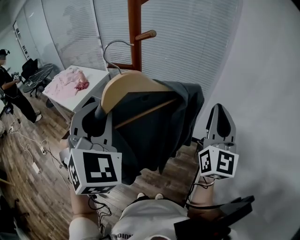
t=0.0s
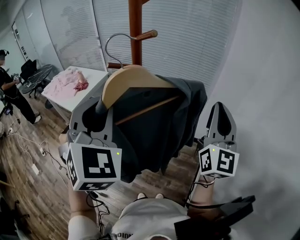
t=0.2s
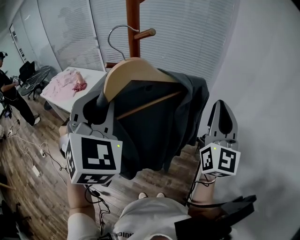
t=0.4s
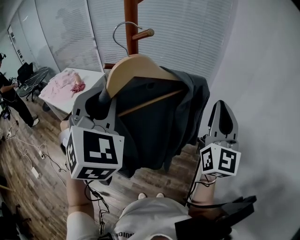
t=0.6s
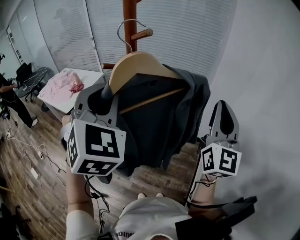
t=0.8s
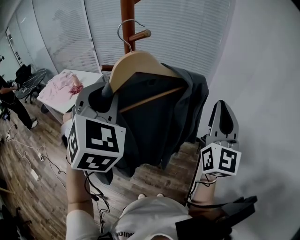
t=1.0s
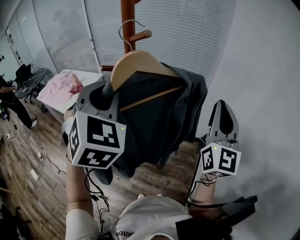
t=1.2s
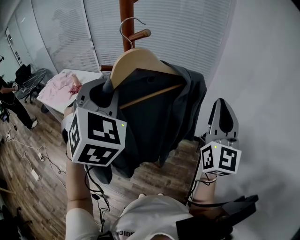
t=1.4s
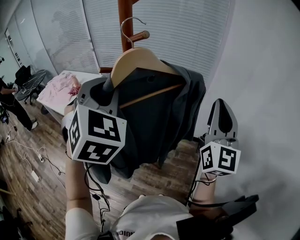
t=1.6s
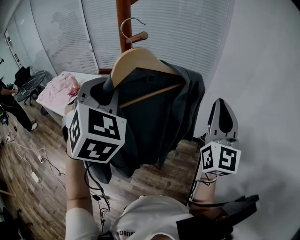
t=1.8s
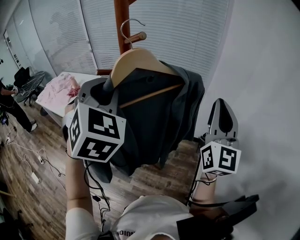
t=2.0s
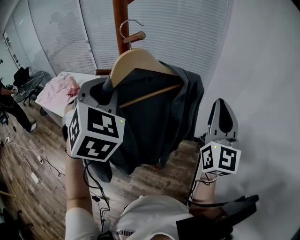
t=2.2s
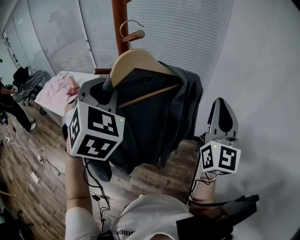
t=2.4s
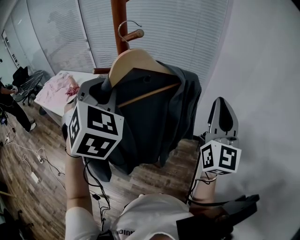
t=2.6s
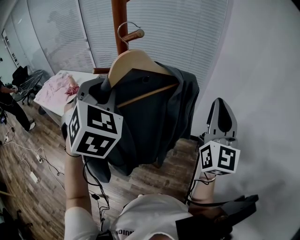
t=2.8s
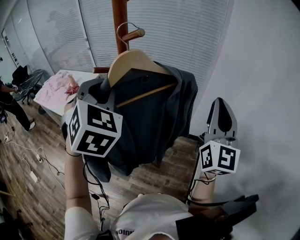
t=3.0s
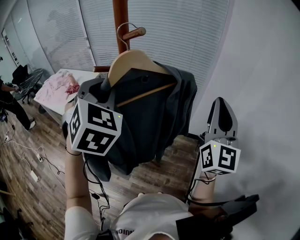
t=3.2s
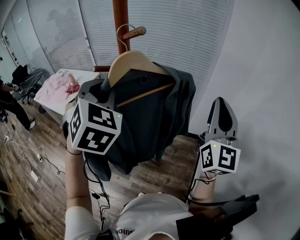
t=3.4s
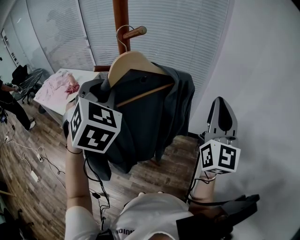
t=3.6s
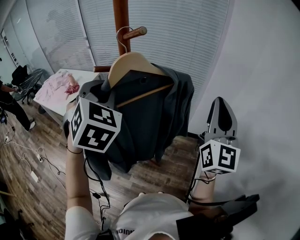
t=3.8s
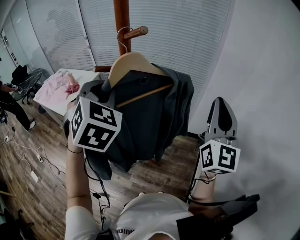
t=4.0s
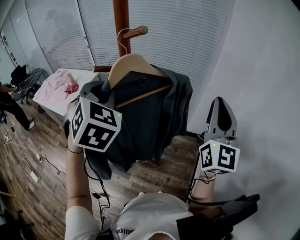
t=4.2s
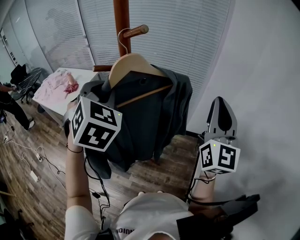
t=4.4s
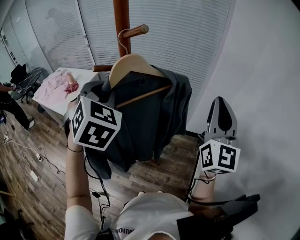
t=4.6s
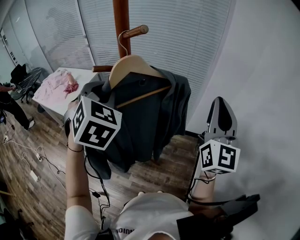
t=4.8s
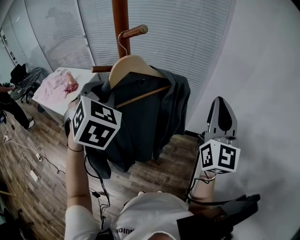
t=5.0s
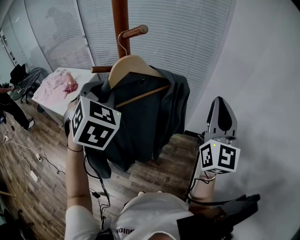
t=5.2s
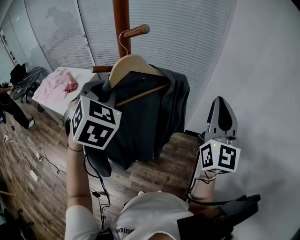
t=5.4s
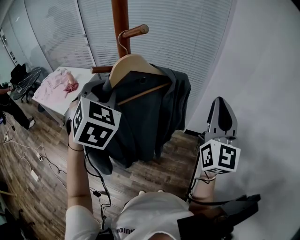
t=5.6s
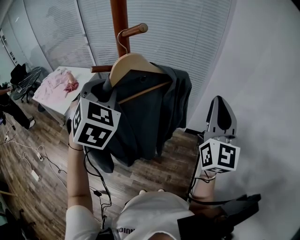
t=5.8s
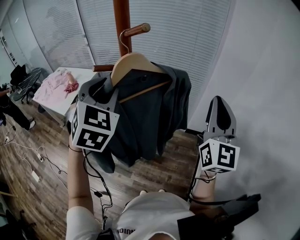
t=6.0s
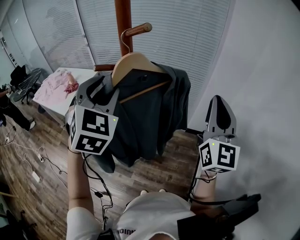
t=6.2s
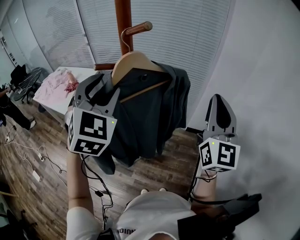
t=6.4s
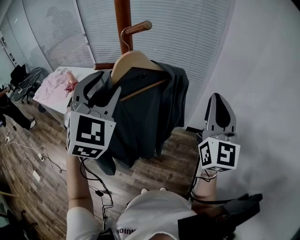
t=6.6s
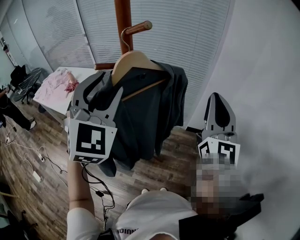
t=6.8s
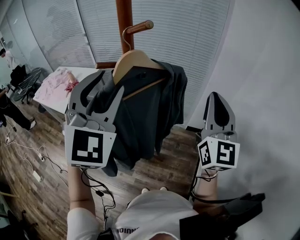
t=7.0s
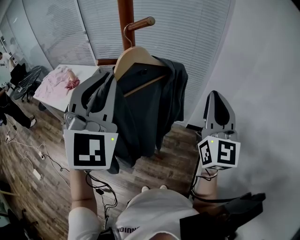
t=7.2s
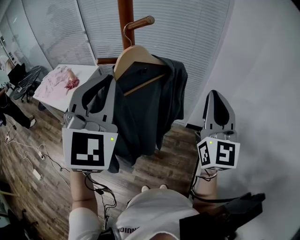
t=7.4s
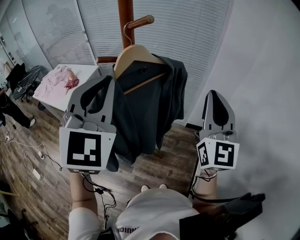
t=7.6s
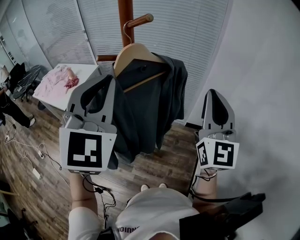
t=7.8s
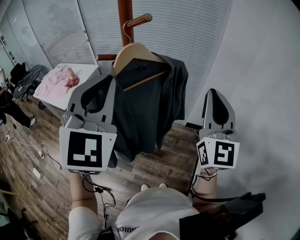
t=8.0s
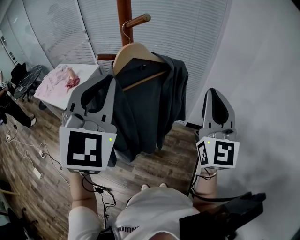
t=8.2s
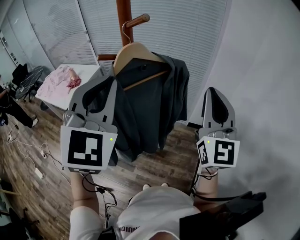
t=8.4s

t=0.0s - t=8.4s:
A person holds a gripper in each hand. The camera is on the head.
t=0.0s - t=1.4s: The left gripper goes some 5 cm forward.
t=1.4s - t=4.2s: The grippers stay close to where they were, moving slightly.
t=4.2s - t=5.6s: Neither gripper changes place.
t=5.6s - t=7.0s: The left gripper goes roughly 10 cm upward and backward, swivels approximately 30 degrees, and opens.
t=7.0s - t=8.4s: The left gripper closes its fingers.

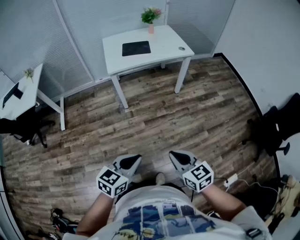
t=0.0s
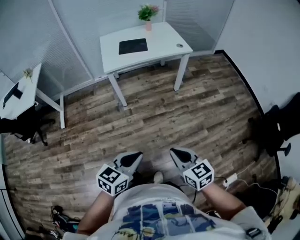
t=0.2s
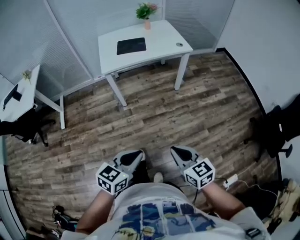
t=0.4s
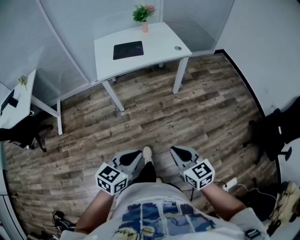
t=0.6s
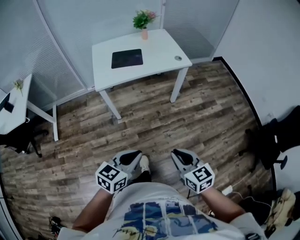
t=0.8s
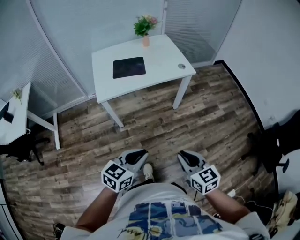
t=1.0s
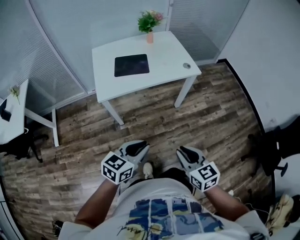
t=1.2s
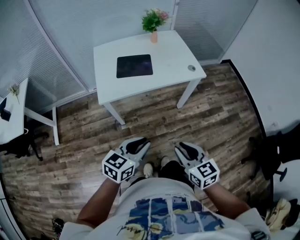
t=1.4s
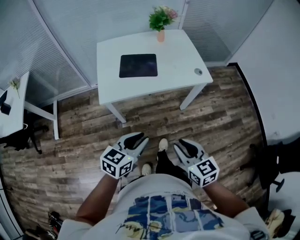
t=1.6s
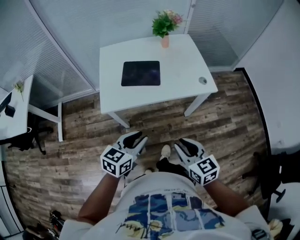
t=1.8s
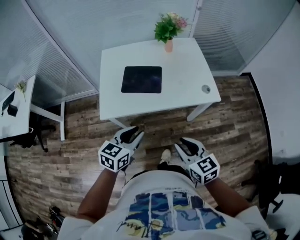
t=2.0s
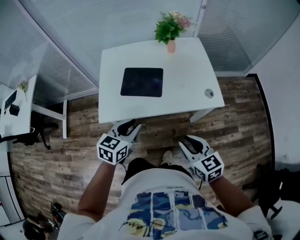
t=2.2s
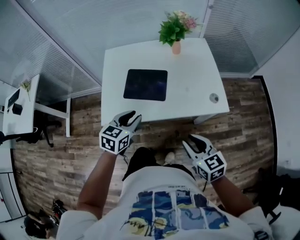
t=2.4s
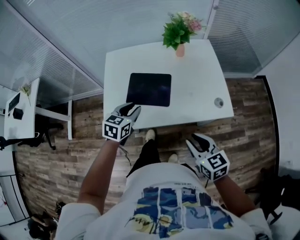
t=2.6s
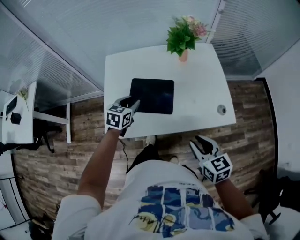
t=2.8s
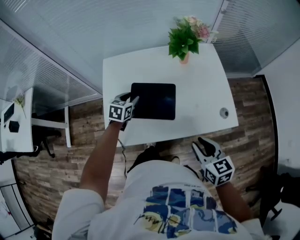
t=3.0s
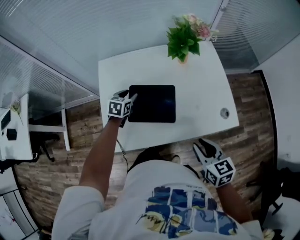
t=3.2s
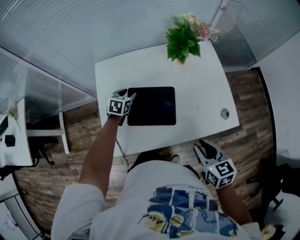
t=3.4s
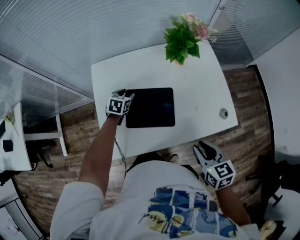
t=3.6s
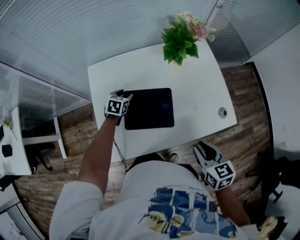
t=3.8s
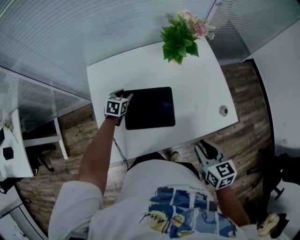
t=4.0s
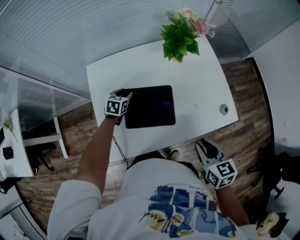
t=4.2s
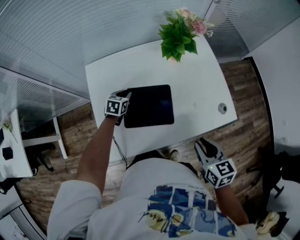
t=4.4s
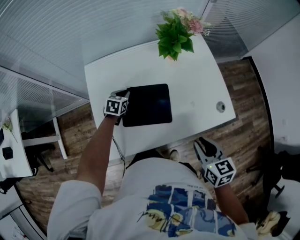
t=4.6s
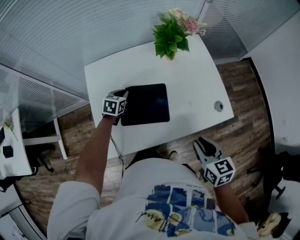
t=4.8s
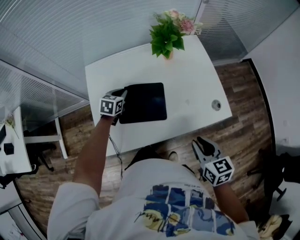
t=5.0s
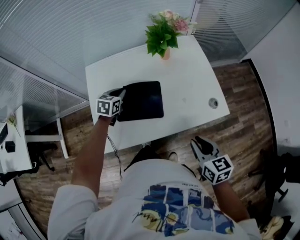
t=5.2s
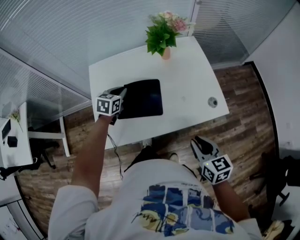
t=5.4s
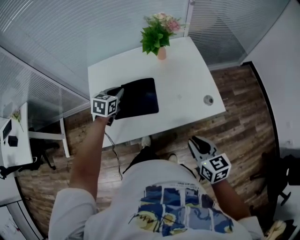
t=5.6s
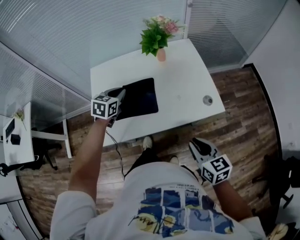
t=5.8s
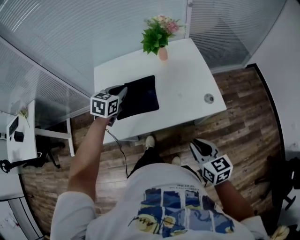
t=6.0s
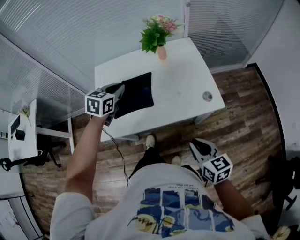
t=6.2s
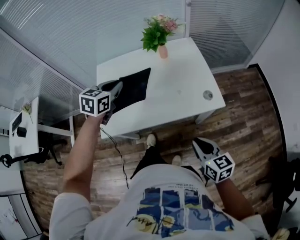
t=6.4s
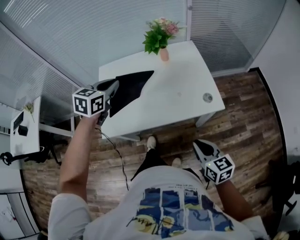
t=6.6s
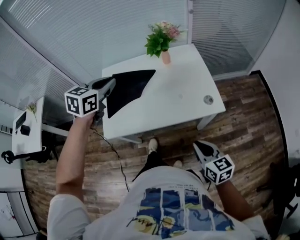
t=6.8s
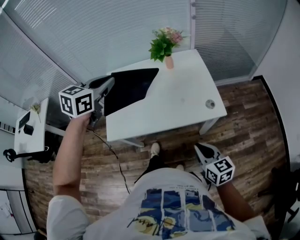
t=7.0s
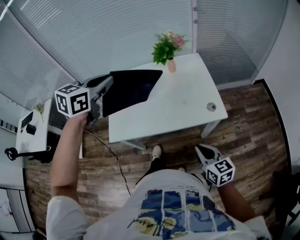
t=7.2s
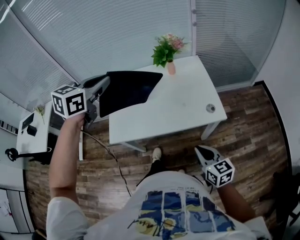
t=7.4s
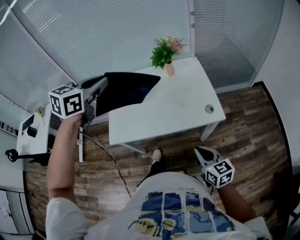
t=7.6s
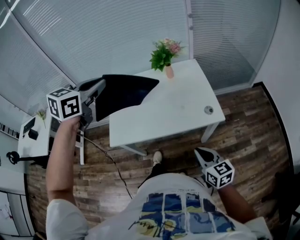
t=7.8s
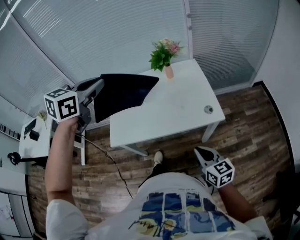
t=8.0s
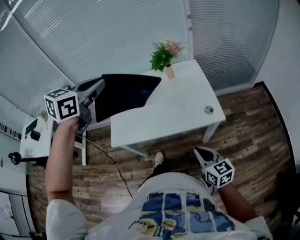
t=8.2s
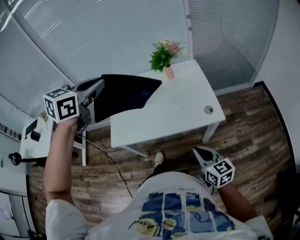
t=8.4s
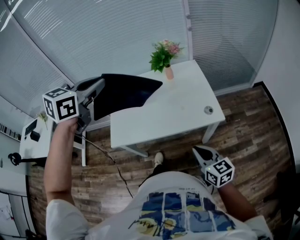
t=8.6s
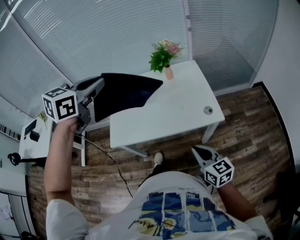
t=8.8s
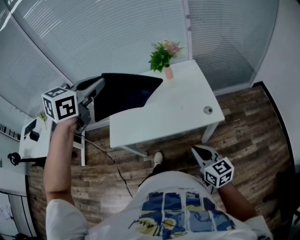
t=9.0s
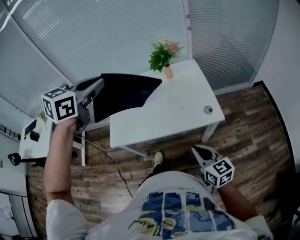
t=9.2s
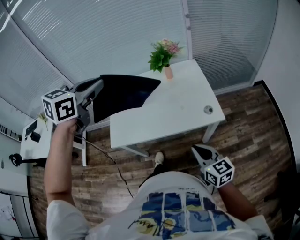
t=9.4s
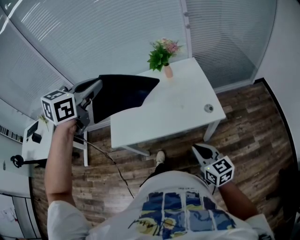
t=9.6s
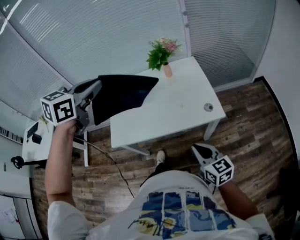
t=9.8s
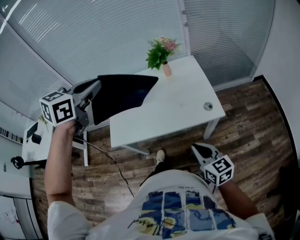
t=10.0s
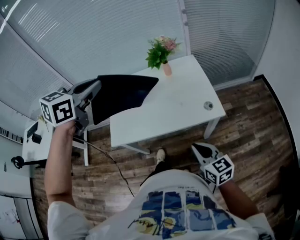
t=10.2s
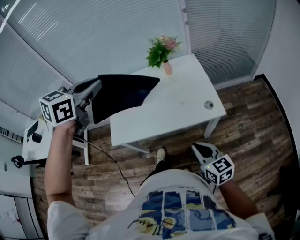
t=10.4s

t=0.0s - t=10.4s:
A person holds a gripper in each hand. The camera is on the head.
t=0.0s - t=1.4s: Both grippers travel together forward, about 40 cm. The right gripper opens up.
t=1.4s - t=3.0s: The two grippers travel together, forward, about 50 cm. The left gripper rotates some 30 degrees.
t=3.0s - t=4.4s: The left gripper shifts some 10 cm forward and downward.
t=4.4s - t=6.0s: The right gripper heads backward and to the right, covering approximately 15 cm; the left gripper heads upward, backward and to the right, covering about 25 cm.
t=6.0s - t=7.4s: The right gripper changes place by about 5 cm, while the left gripper is displaced upward by some 25 cm.
t=7.4s - t=9.0s: The left gripper changes place by about 5 cm.
t=9.0s - t=10.4s: Neither gripper changes place.

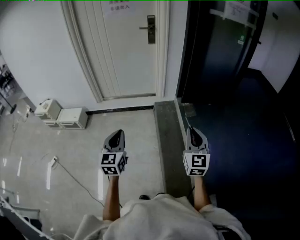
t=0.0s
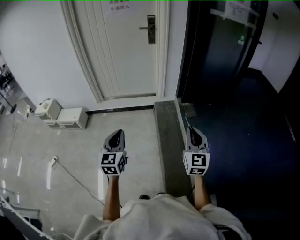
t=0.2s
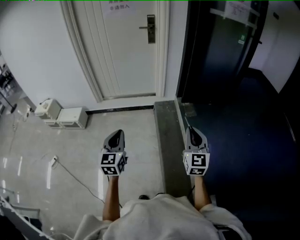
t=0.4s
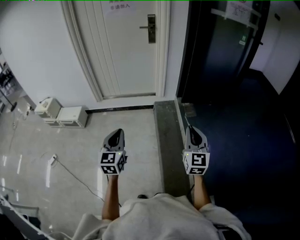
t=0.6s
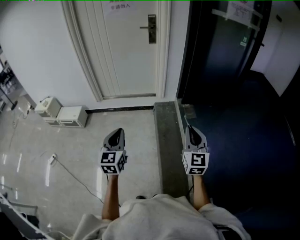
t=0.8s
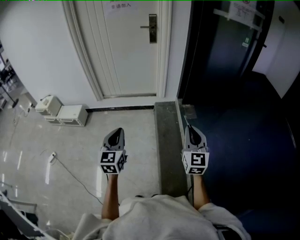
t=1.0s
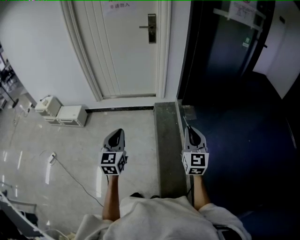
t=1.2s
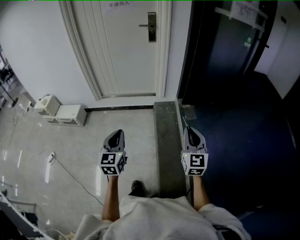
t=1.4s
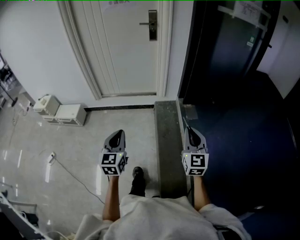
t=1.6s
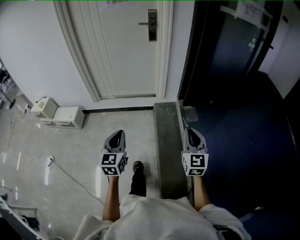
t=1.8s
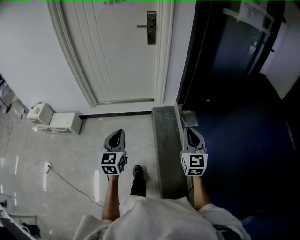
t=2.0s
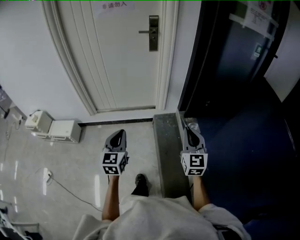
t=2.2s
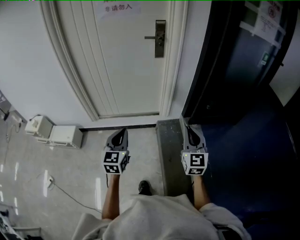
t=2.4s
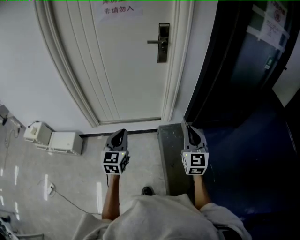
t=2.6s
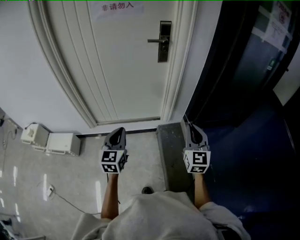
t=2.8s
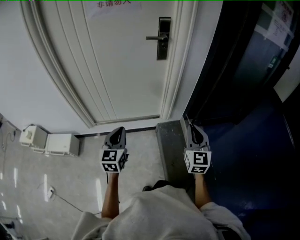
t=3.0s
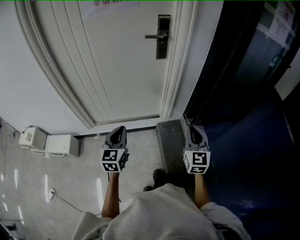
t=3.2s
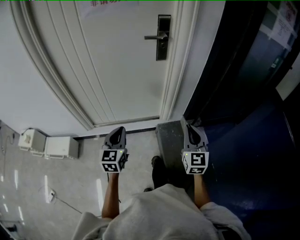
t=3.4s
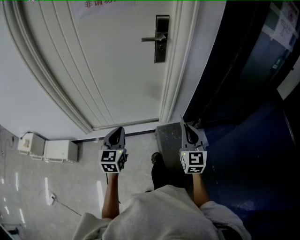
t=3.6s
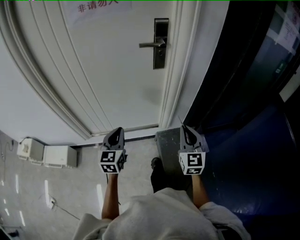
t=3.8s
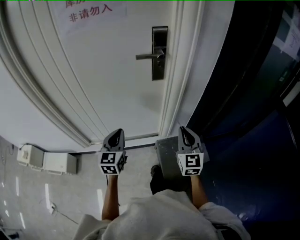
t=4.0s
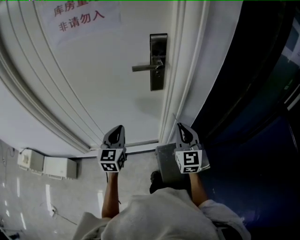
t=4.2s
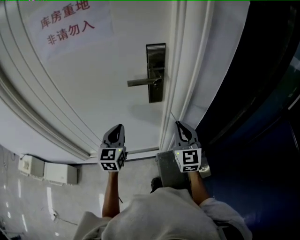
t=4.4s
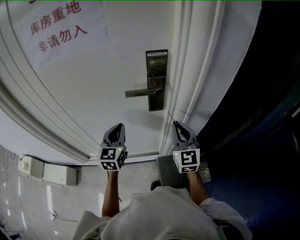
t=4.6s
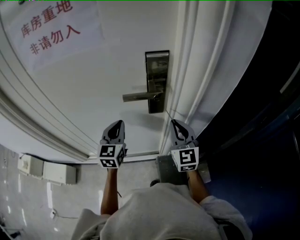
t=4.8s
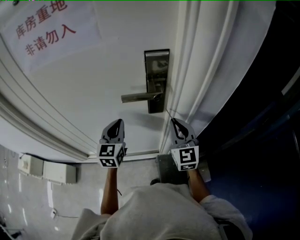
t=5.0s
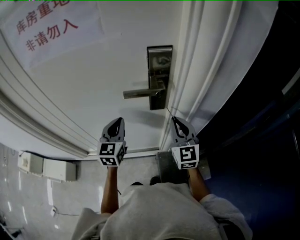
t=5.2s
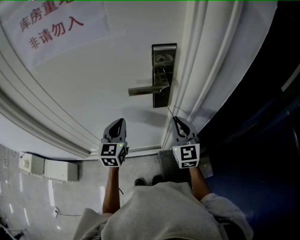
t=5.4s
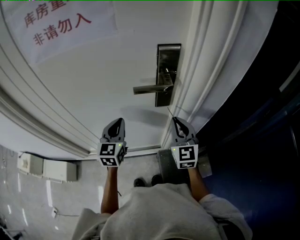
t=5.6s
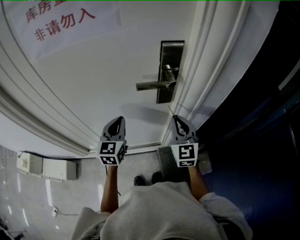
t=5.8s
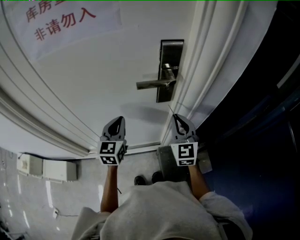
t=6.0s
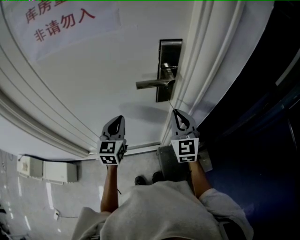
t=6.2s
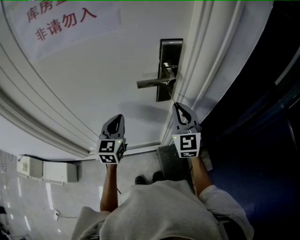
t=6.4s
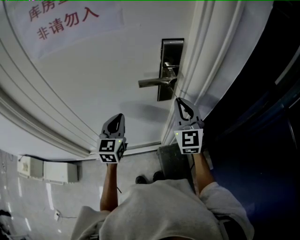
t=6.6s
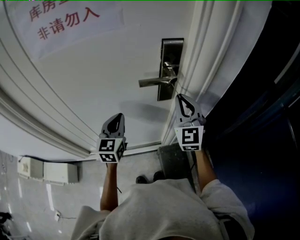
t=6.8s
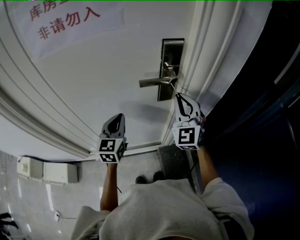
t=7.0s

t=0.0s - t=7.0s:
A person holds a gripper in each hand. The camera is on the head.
t=0.0s - t=1.4s: The left gripper moves forward and to the right, some 10 cm, while the right gripper moves forward, some 10 cm.
t=1.4s - t=2.8s: The pair of grippers is taken forward, roughly 50 cm.
t=2.8s - t=4.2s: Both grippers move forward, approximately 35 cm.
t=4.2s - t=5.6s: Both grippers travel together forward, some 15 cm.
t=5.6s - t=7.0s: The right gripper heads upward, covering about 10 cm, and turns by about 20 degrees.
